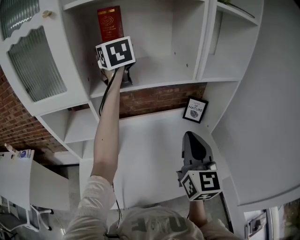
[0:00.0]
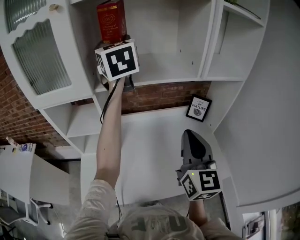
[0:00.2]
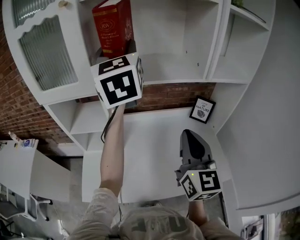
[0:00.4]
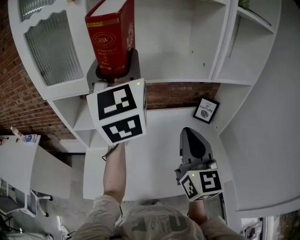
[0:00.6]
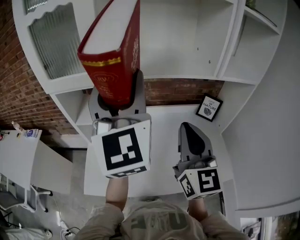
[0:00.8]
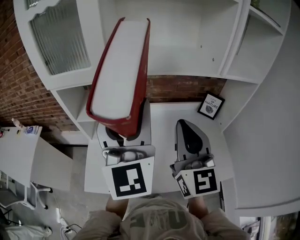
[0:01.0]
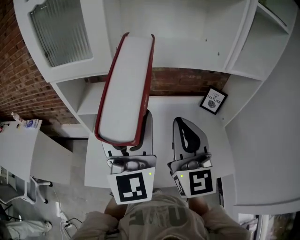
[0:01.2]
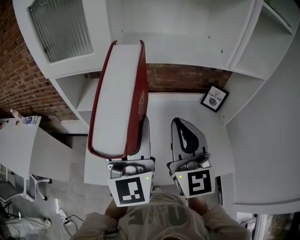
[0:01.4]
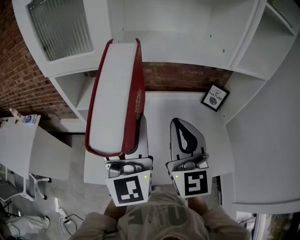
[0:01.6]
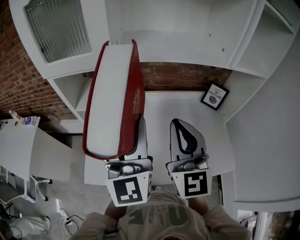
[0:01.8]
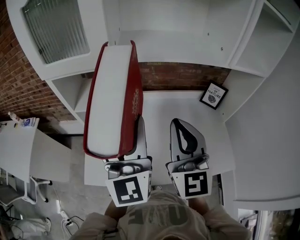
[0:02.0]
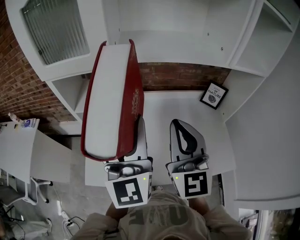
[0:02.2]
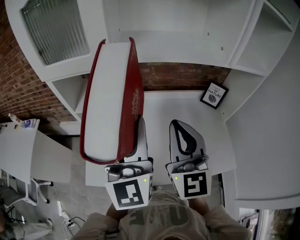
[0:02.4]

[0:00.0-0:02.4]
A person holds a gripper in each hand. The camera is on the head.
0:00.0 to 0:01.2: The right gripper moves to the left, approximately 15 cm, and turns by some 20 degrees. Meanwhile the left gripper heads backward and downward, covering roughly 30 cm.
0:01.2 to 0:02.4: The grippers make only small movements.

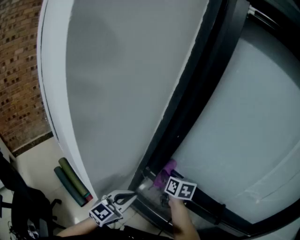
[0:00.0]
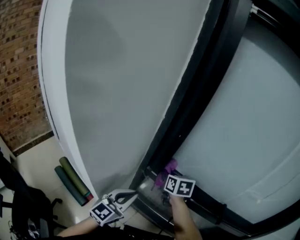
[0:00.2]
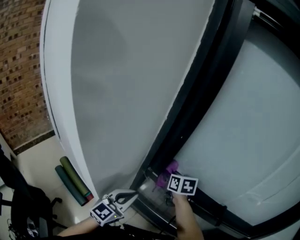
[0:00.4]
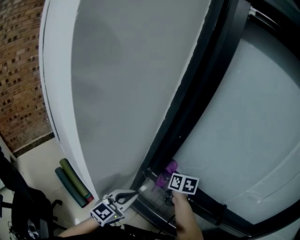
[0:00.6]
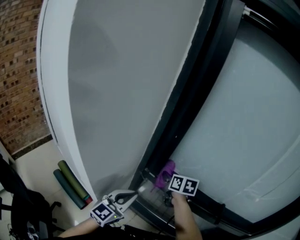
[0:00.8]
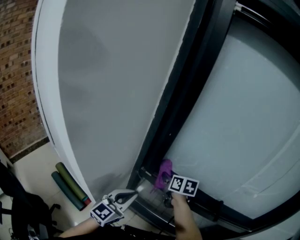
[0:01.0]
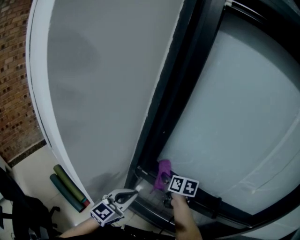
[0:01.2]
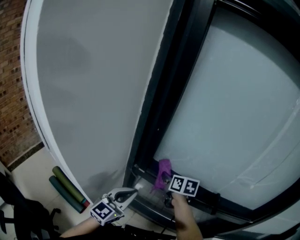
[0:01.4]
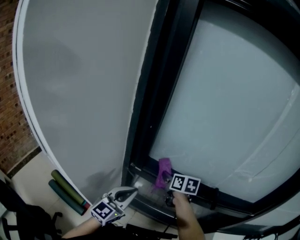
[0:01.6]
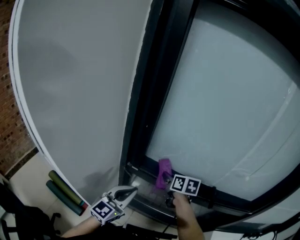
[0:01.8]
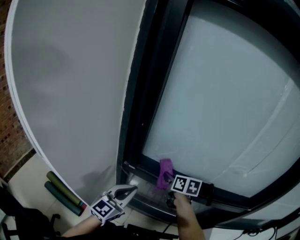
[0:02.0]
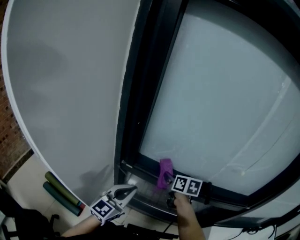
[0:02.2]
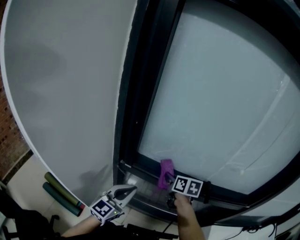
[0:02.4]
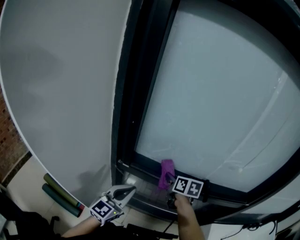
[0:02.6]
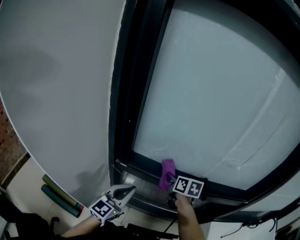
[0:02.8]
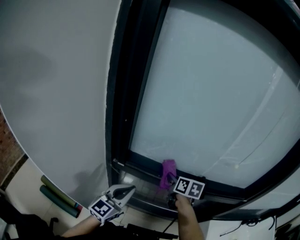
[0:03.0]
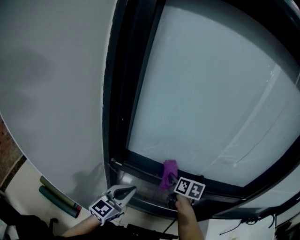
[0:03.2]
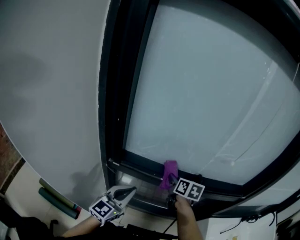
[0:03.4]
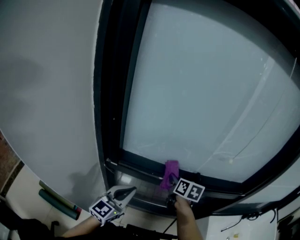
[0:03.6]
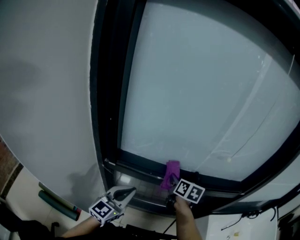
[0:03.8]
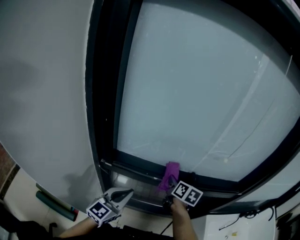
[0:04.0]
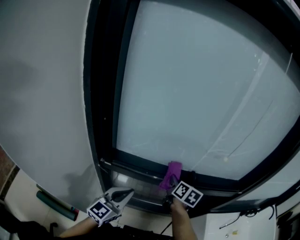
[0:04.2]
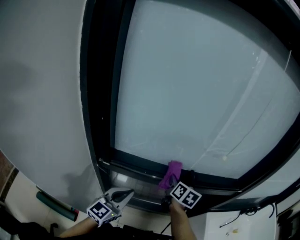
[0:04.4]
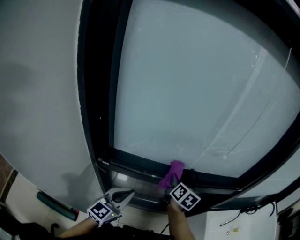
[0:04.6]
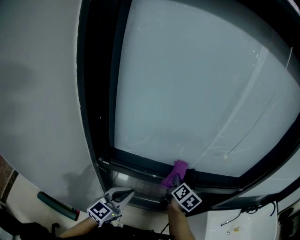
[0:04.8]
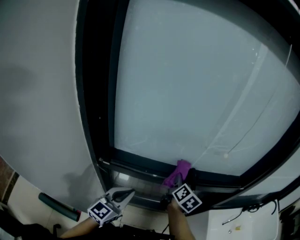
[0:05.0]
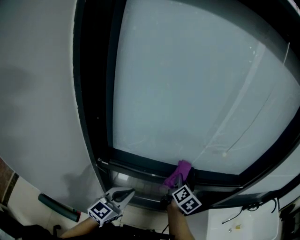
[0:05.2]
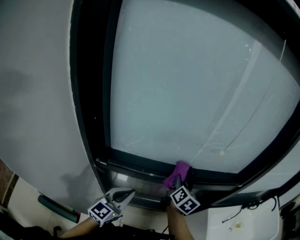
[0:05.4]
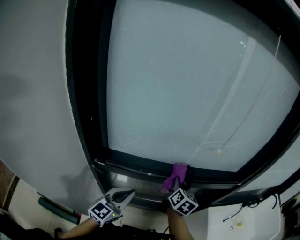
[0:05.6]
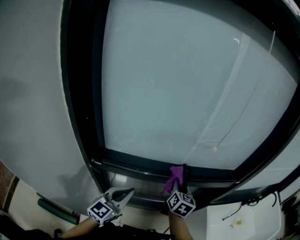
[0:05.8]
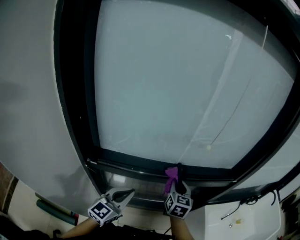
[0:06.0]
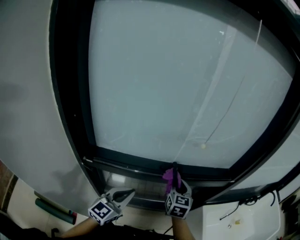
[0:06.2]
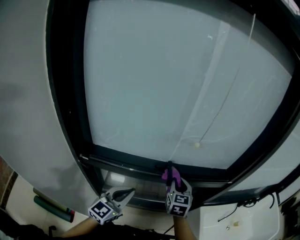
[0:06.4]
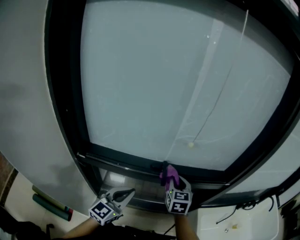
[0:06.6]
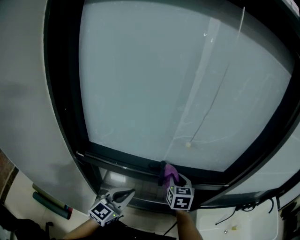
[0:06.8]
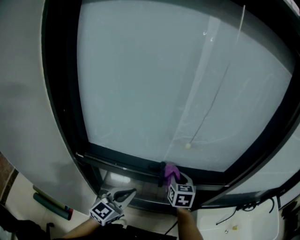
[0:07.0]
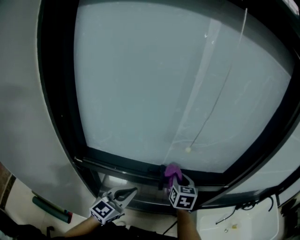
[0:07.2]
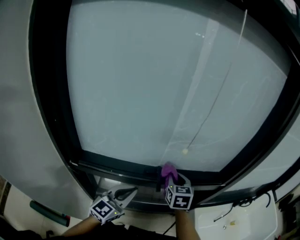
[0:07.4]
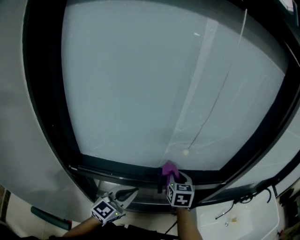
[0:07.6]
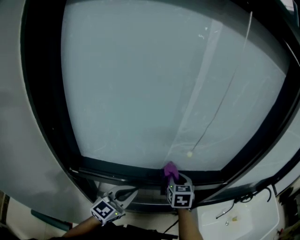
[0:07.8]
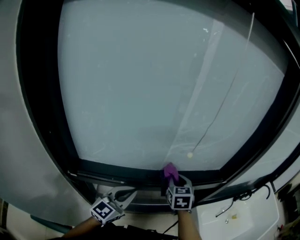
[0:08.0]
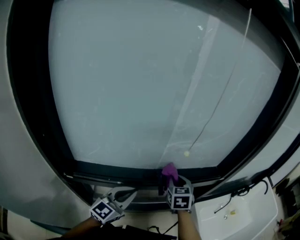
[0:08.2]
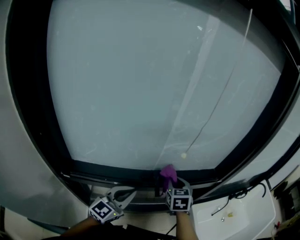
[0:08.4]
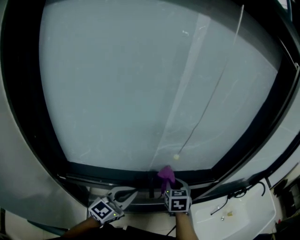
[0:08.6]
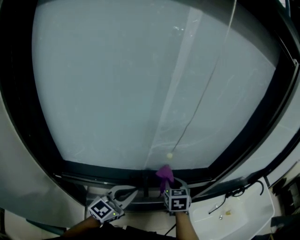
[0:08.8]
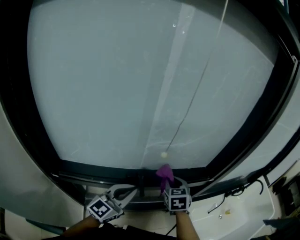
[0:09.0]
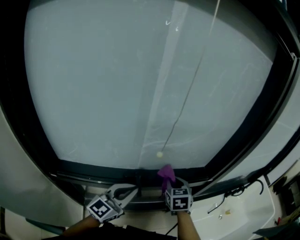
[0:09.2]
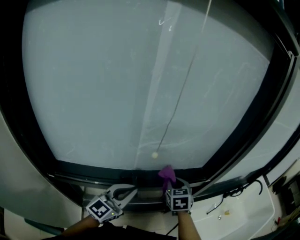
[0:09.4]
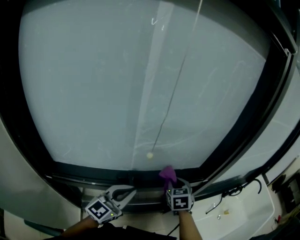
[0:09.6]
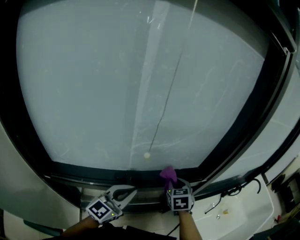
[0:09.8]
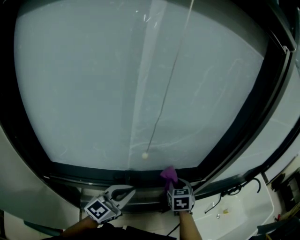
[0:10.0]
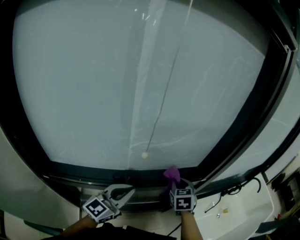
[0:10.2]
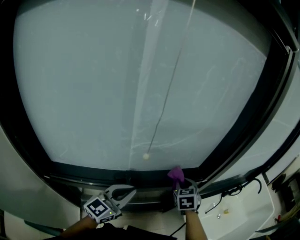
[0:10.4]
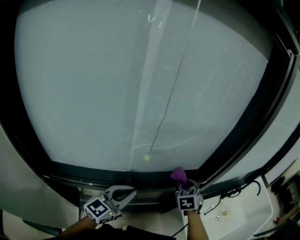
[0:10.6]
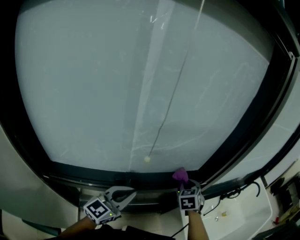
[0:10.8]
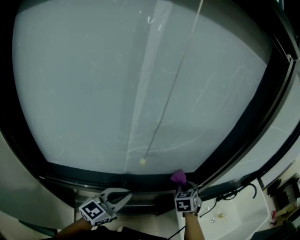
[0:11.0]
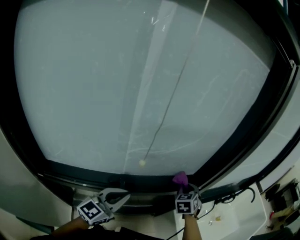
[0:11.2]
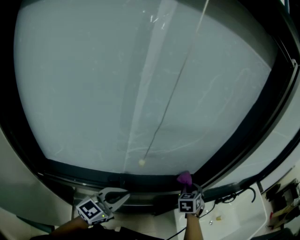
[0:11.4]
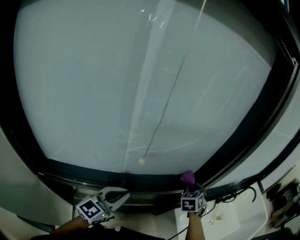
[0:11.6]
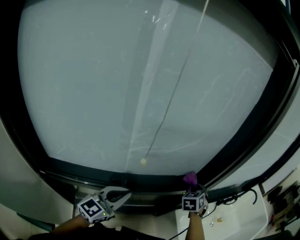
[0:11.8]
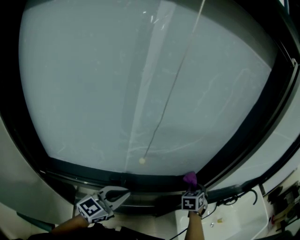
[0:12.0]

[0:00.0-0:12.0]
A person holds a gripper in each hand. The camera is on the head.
0:00.0 to 0:01.6: The right gripper moves to the right, approximately 10 cm.
0:01.6 to 0:03.0: The left gripper moves to the right, approximately 5 cm; the right gripper goes about 10 cm to the right.
0:03.0 to 0:04.4: The left gripper goes approximately 5 cm to the right; the right gripper moves to the right, approximately 10 cm, and swivels approximately 20 degrees.
0:04.4 to 0:06.0: The right gripper heads to the right, covering some 10 cm, and swivels some 30 degrees; the left gripper shifts roughly 5 cm to the right.
0:06.0 to 0:07.6: The left gripper heads to the right and forward, covering some 10 cm, while the right gripper shifts about 5 cm forward.
0:07.6 to 0:09.0: The left gripper goes some 5 cm forward. The right gripper goes about 5 cm to the right.
0:09.0 to 0:10.4: The right gripper goes about 10 cm to the right and forward.
0:10.4 to 0:12.0: The right gripper heads to the right and forward, covering roughly 10 cm.

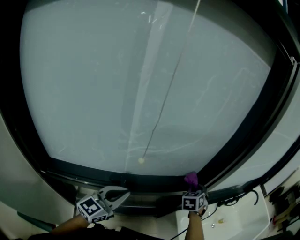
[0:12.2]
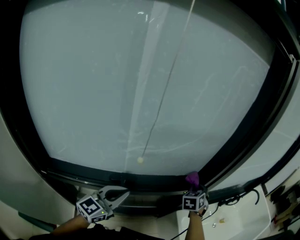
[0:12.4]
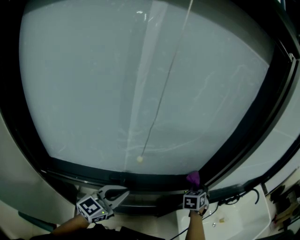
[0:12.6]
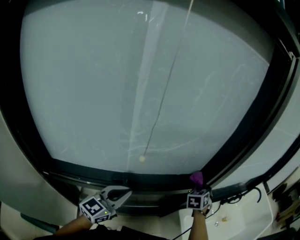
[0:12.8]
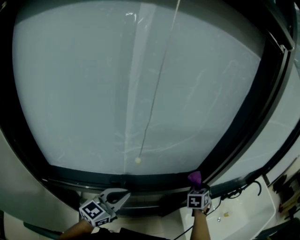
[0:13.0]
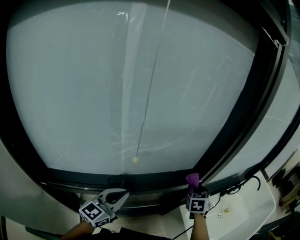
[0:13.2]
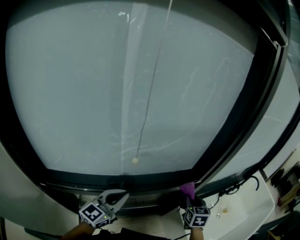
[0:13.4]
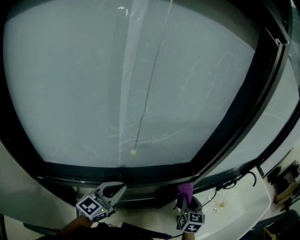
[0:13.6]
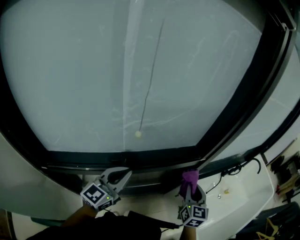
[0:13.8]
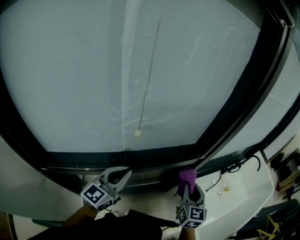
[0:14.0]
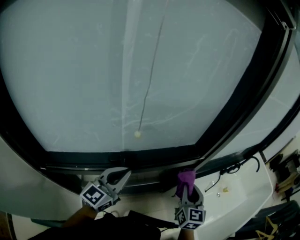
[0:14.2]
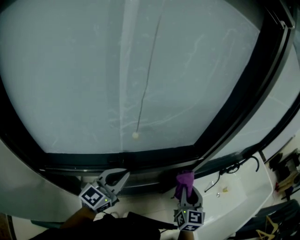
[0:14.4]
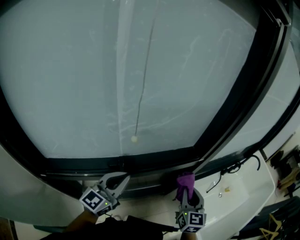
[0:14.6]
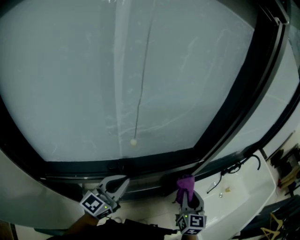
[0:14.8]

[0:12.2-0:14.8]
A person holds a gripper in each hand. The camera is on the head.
0:12.2 to 0:13.4: The right gripper is displaced backward by roughly 10 cm, and changes its angle by roughly 30 degrees.
0:13.4 to 0:14.8: The right gripper goes some 10 cm backward.

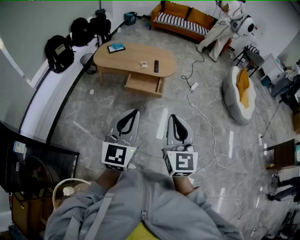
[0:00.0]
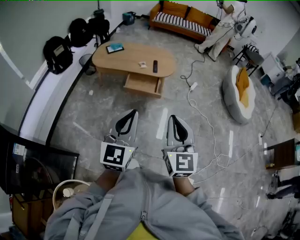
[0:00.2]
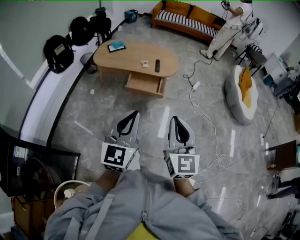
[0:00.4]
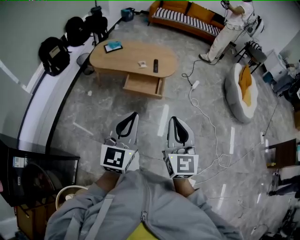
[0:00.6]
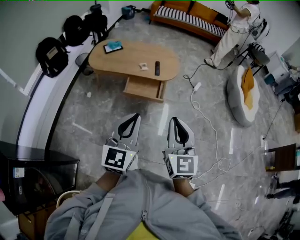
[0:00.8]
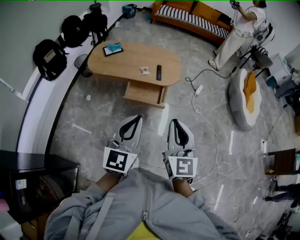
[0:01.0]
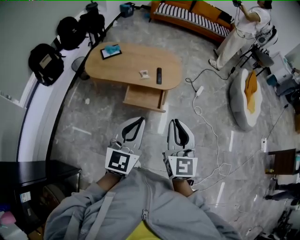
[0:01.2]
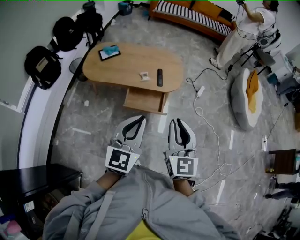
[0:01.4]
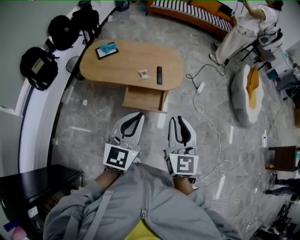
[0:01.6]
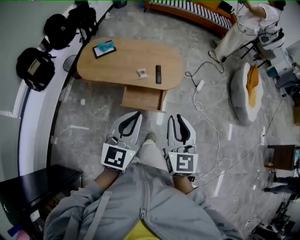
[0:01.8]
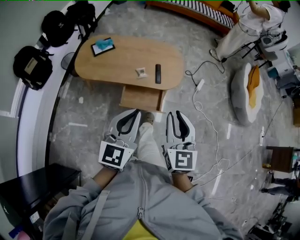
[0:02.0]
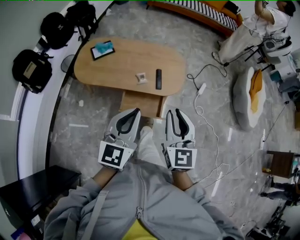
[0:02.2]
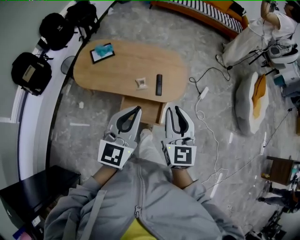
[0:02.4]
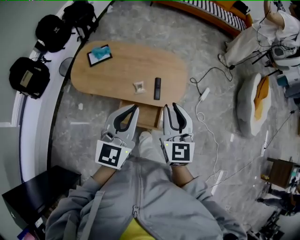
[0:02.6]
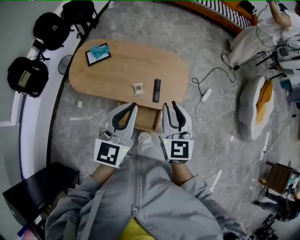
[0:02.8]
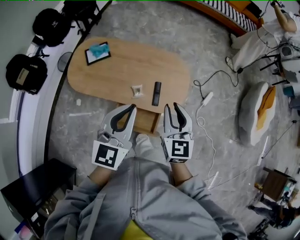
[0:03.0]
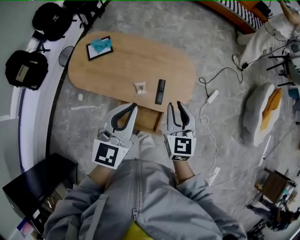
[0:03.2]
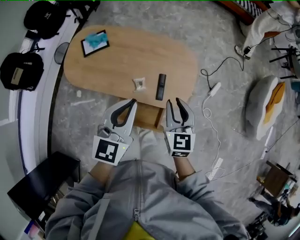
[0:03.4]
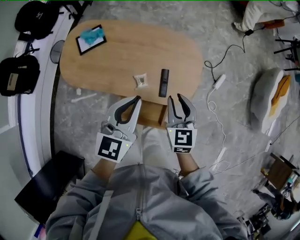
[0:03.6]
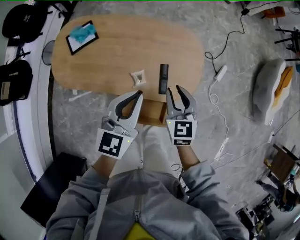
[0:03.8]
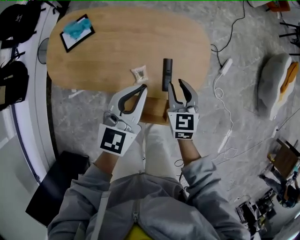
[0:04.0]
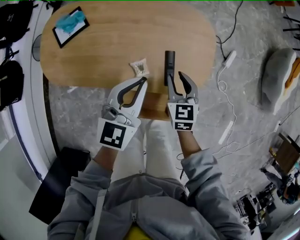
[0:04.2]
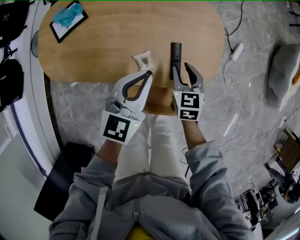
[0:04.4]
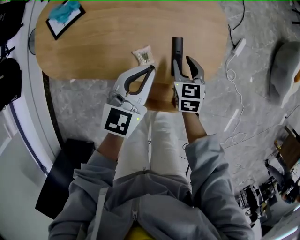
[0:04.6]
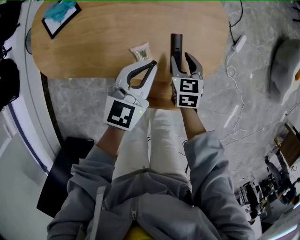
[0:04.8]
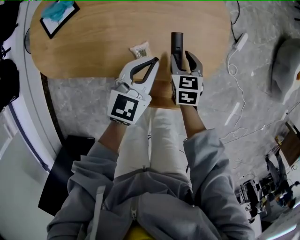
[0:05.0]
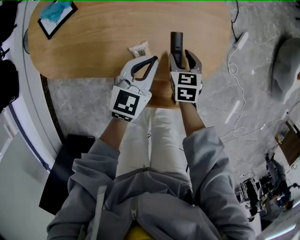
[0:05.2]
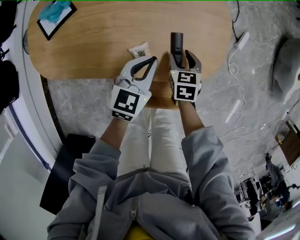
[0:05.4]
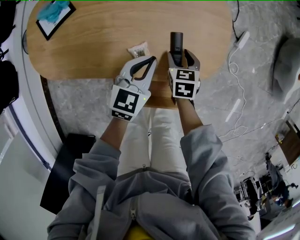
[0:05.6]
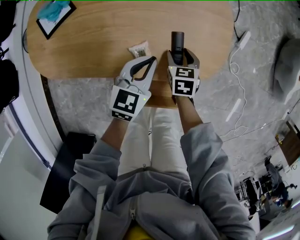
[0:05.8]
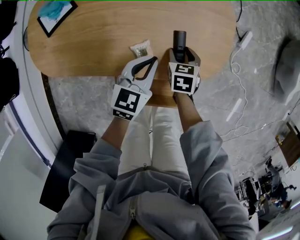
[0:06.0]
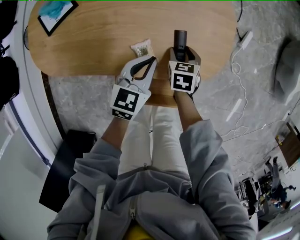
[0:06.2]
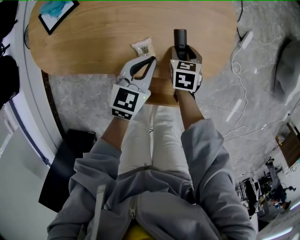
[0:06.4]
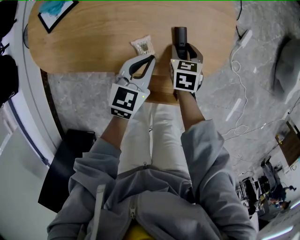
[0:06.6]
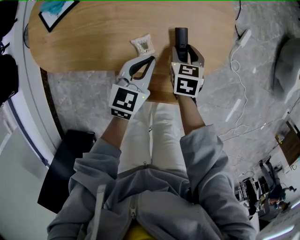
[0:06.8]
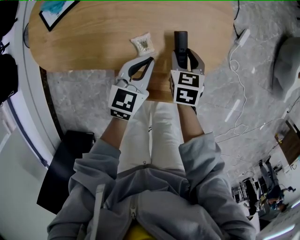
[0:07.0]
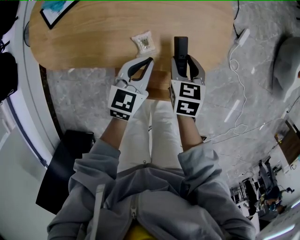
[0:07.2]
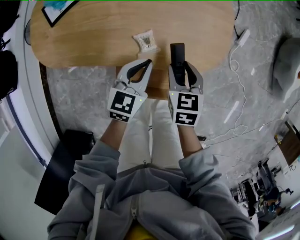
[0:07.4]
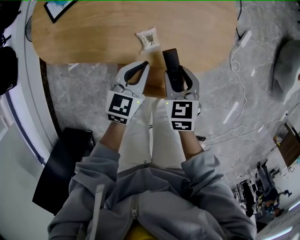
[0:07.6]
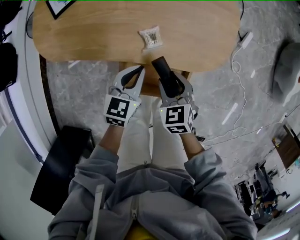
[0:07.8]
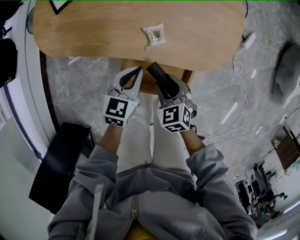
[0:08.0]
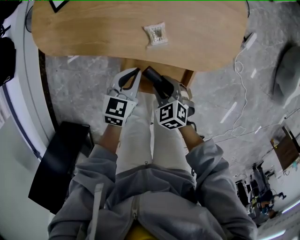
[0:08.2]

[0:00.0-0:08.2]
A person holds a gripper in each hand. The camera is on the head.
0:00.0 to 0:01.6: The two grippers go some 35 cm forward.
0:01.6 to 0:03.2: Both grippers move forward, roughly 40 cm.
0:03.2 to 0:05.0: The grippers both shift downward by some 35 cm. The right gripper swivels approximately 30 degrees. Meanwhile the left gripper rotates some 20 degrees.
0:05.0 to 0:06.6: The left gripper goes some 5 cm downward.
0:06.6 to 0:08.2: The left gripper ends up approximately 15 cm from where it was; the right gripper travels upward and back again, about 10 cm each way, and swivels some 50 degrees.
